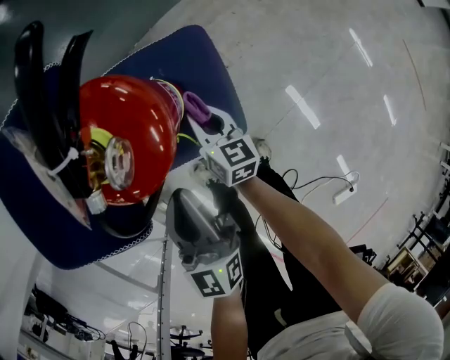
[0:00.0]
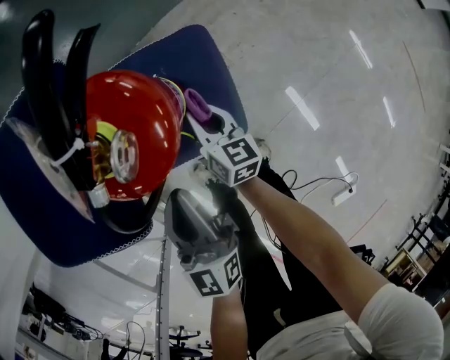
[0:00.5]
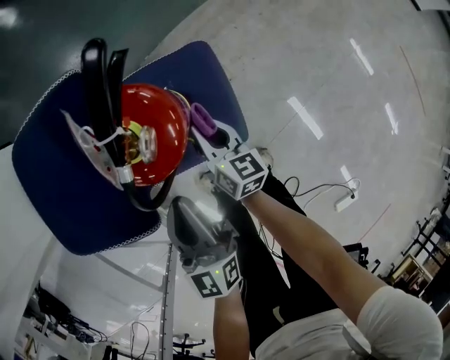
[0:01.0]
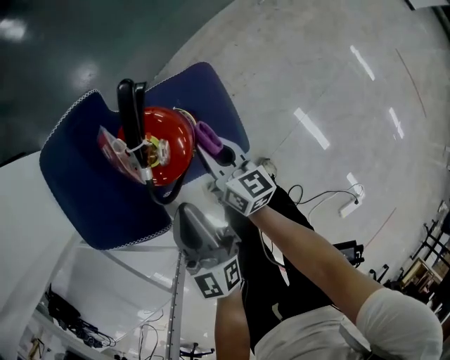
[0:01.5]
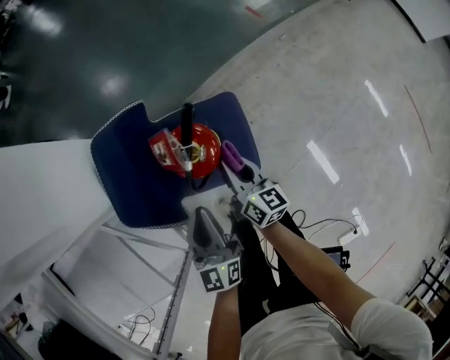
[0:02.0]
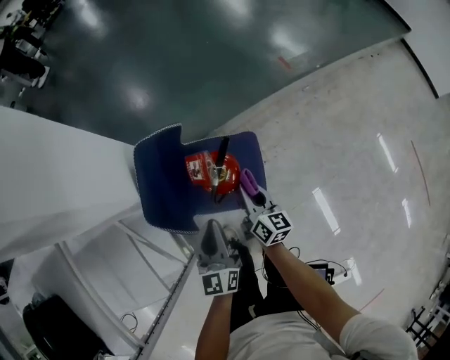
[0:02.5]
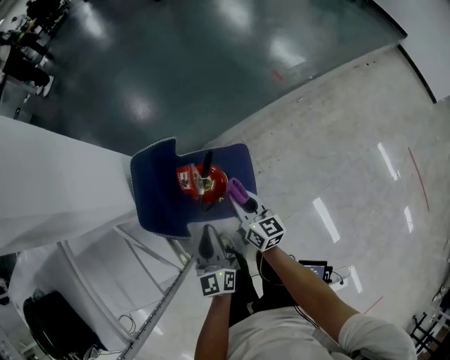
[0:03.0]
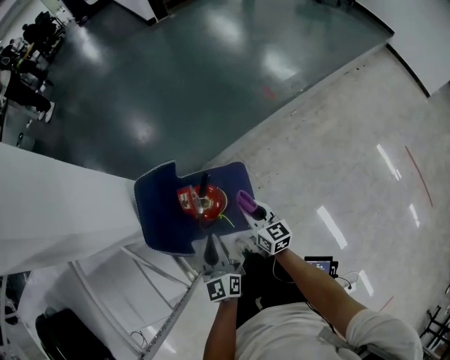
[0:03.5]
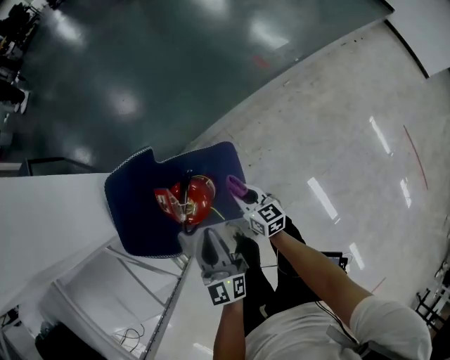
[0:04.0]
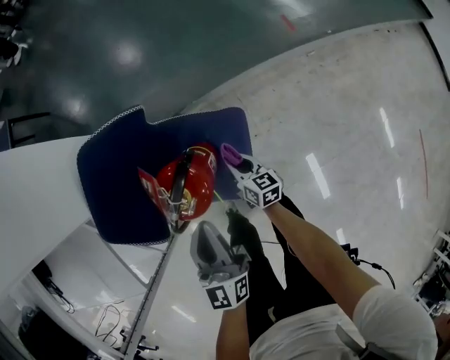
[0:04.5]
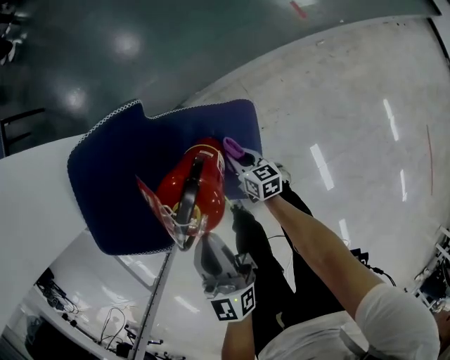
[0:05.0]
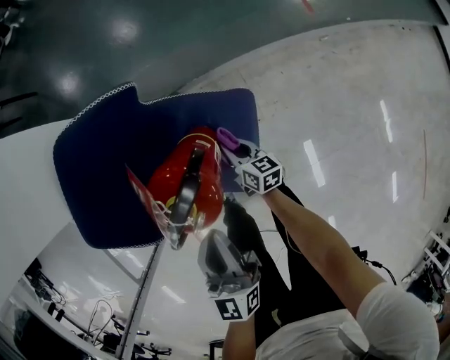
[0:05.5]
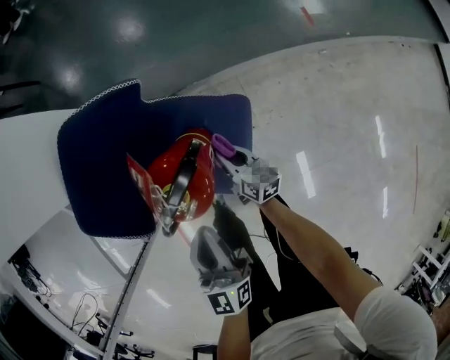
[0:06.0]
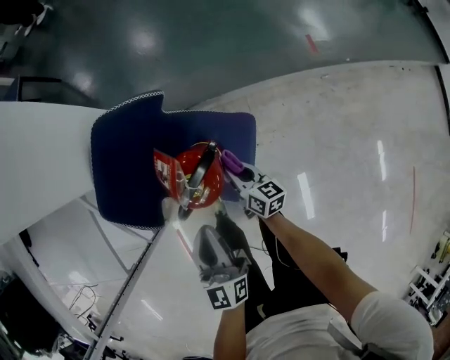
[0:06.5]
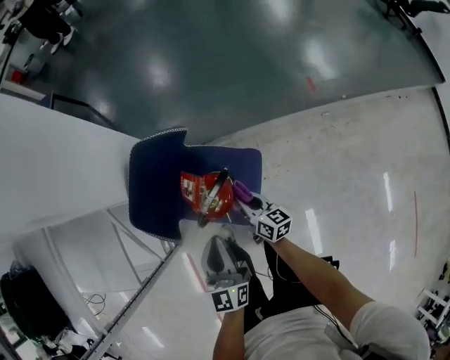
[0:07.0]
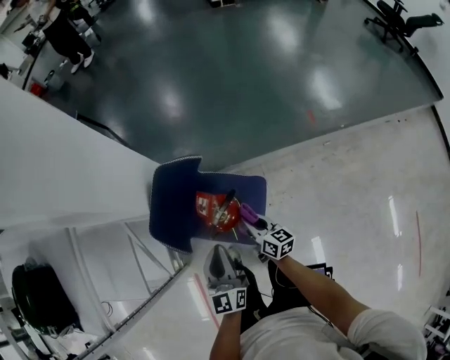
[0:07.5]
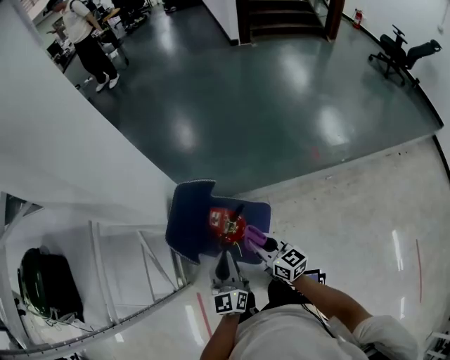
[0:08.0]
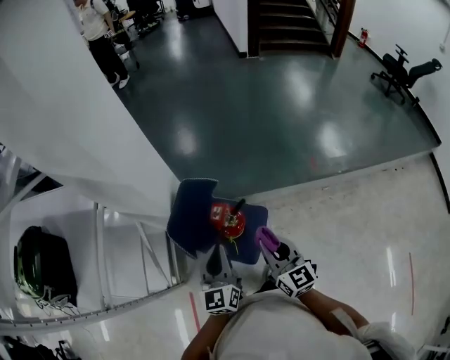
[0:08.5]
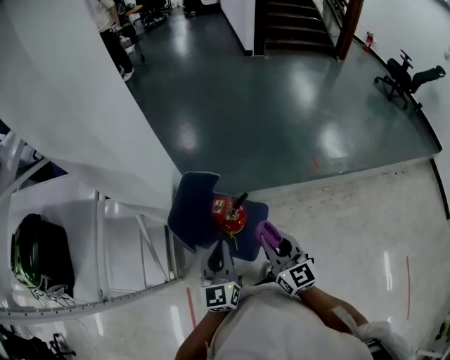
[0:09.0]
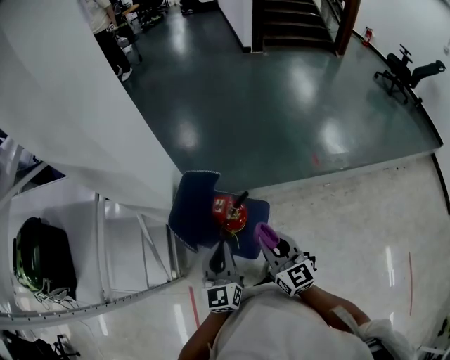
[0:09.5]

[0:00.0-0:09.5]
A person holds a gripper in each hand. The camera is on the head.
0:00.0 to 0:02.0: The right gripper moves upward, roughly 20 cm. The left gripper travels upward by about 10 cm.
0:02.0 to 0:04.0: Both grippers travel together to the right, about 10 cm. The right gripper travels upward and back again, some 10 cm each way, and swivels about 20 degrees.
0:04.0 to 0:05.5: The right gripper heads downward, covering roughly 20 cm. The left gripper heads downward, covering roughly 10 cm.
0:05.5 to 0:07.5: The right gripper goes roughly 30 cm upward, while the left gripper is displaced upward by some 15 cm.
0:07.5 to 0:09.5: The right gripper is displaced upward by some 30 cm, and turns by approximately 40 degrees. The left gripper moves upward, about 10 cm.

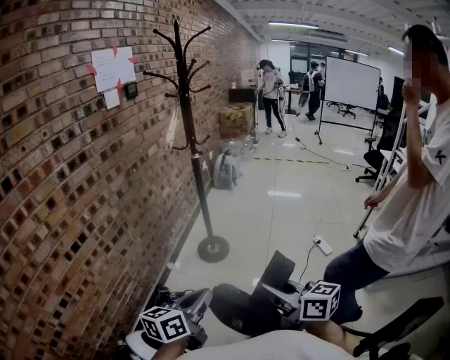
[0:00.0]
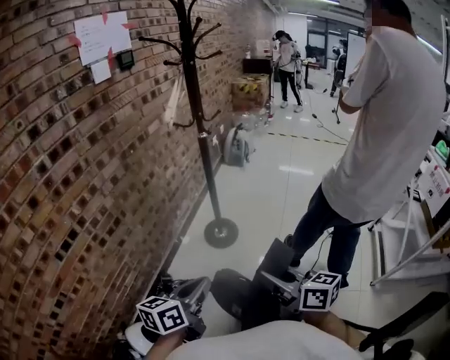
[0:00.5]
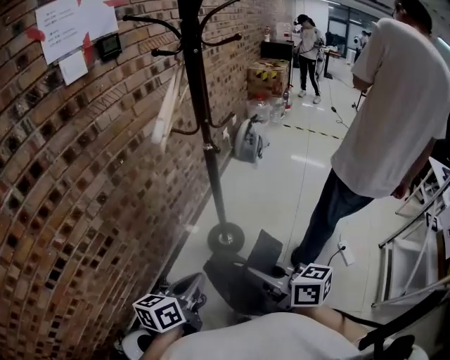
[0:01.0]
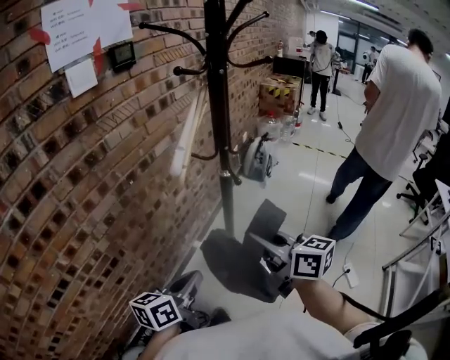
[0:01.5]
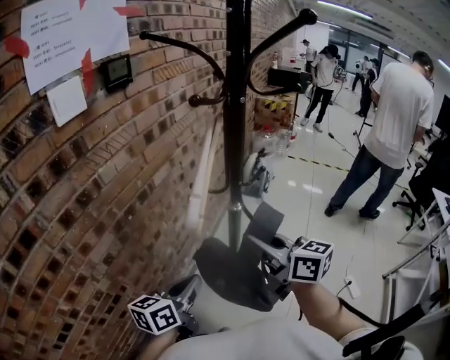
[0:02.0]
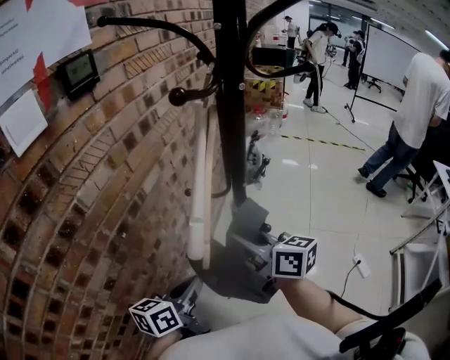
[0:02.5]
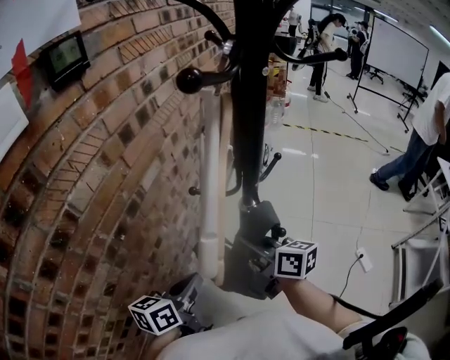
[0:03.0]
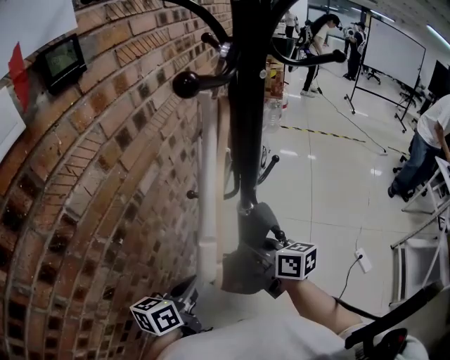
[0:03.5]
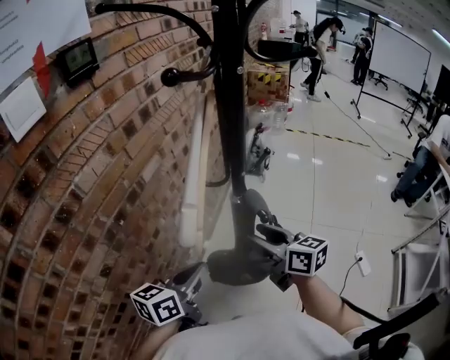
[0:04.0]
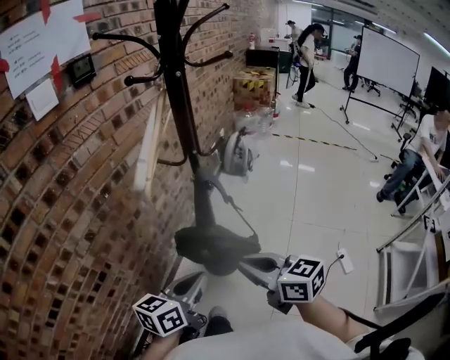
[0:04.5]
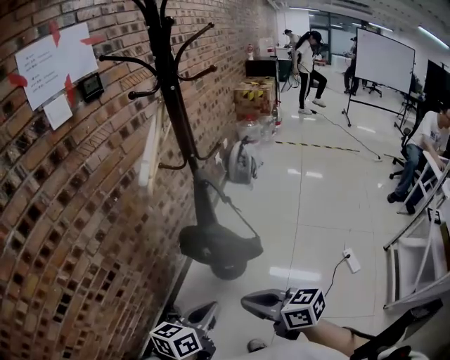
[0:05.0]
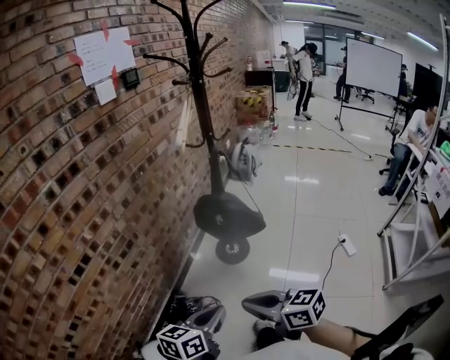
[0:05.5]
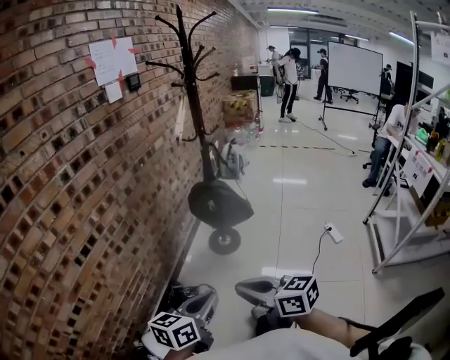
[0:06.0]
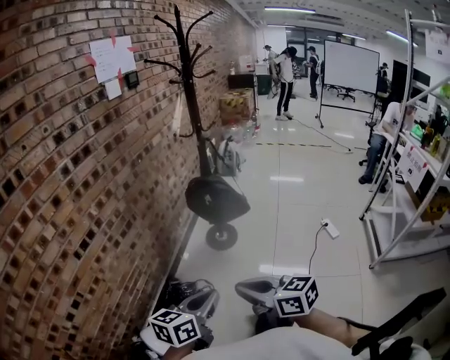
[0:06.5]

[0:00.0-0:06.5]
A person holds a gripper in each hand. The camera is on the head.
0:00.0 to 0:02.0: The pair of grippers is taken forward, roughly 60 cm.
0:02.0 to 0:04.5: The right gripper moves backward, downward and to the right, some 20 cm, and opens, then closes once more; the left gripper moves to the right and backward, some 15 cm.
0:04.5 to 0:06.5: The two grippers travel together, backward, roughly 50 cm.

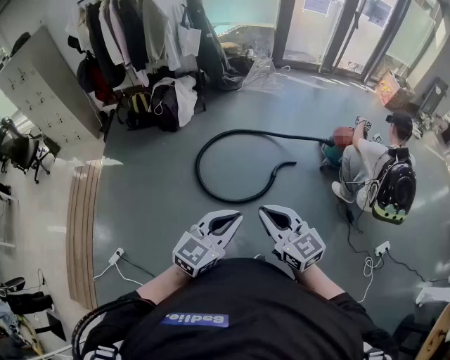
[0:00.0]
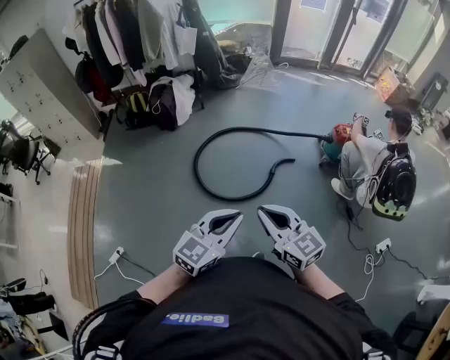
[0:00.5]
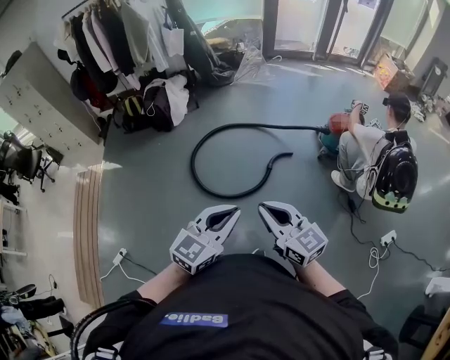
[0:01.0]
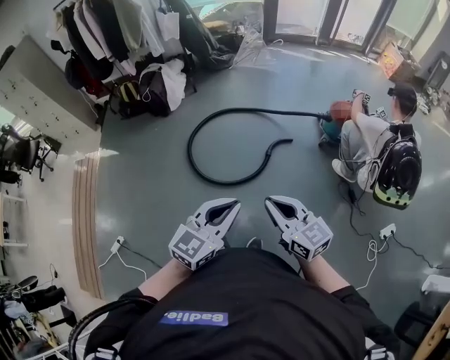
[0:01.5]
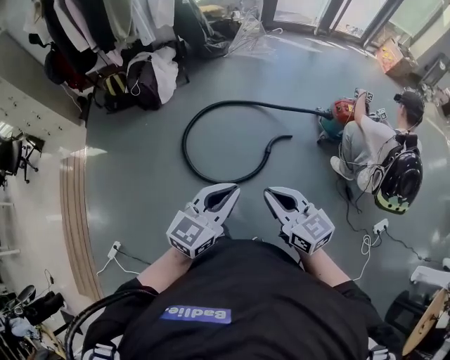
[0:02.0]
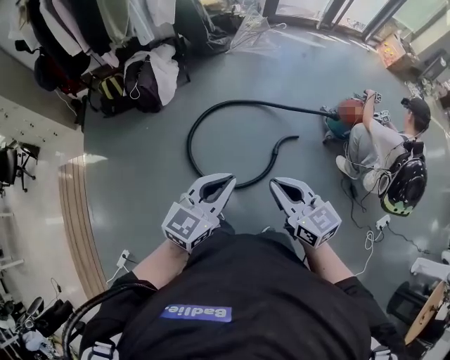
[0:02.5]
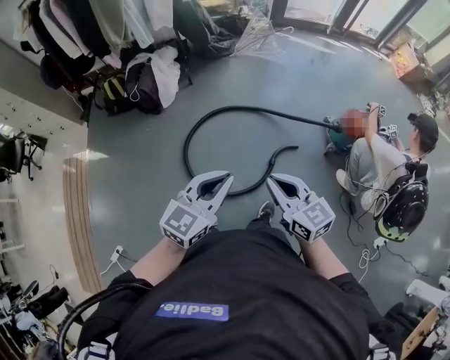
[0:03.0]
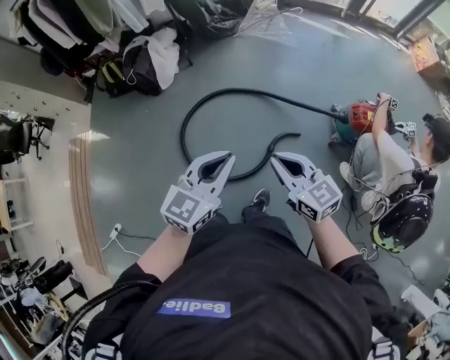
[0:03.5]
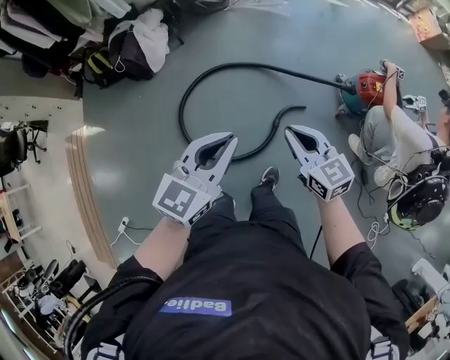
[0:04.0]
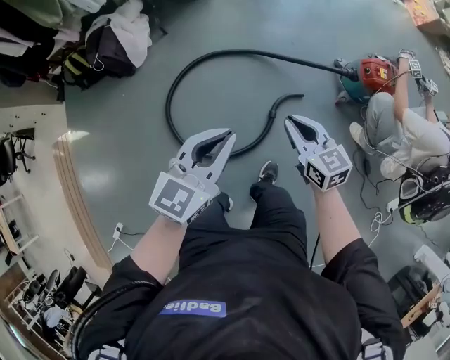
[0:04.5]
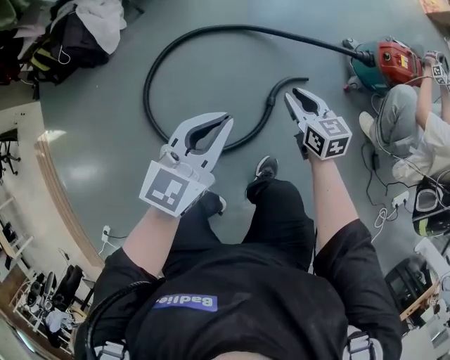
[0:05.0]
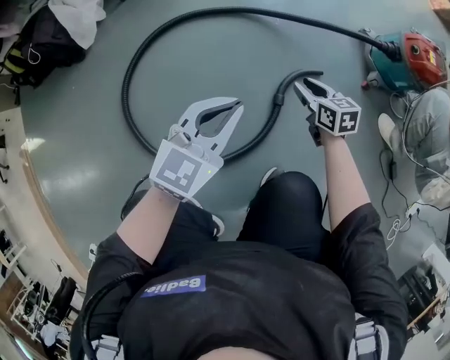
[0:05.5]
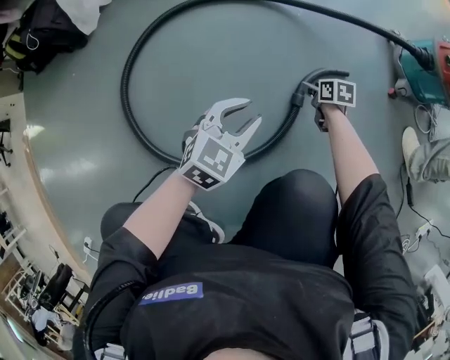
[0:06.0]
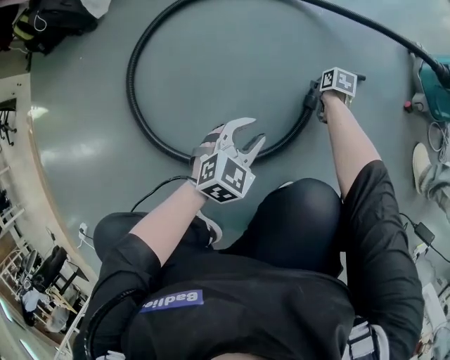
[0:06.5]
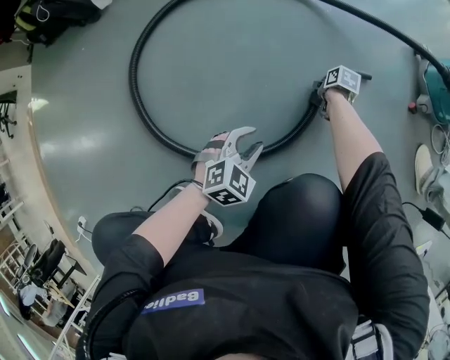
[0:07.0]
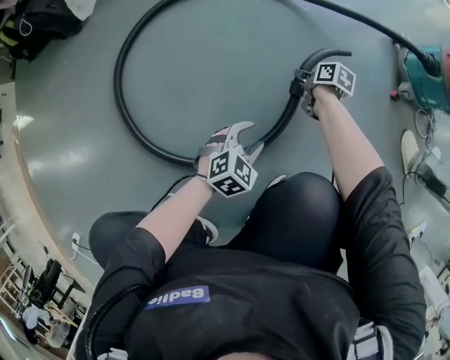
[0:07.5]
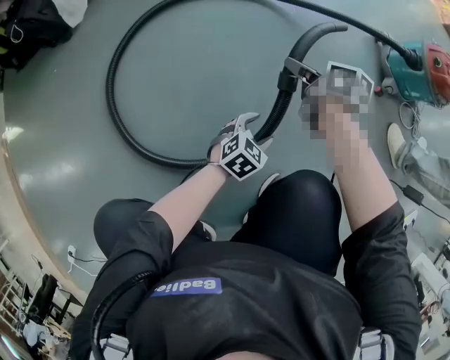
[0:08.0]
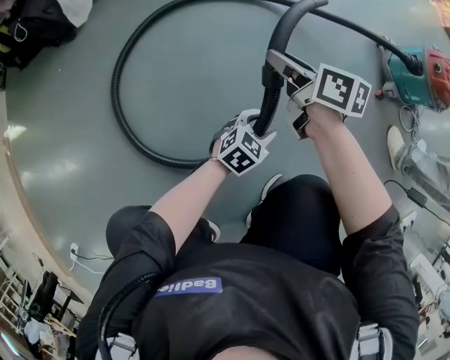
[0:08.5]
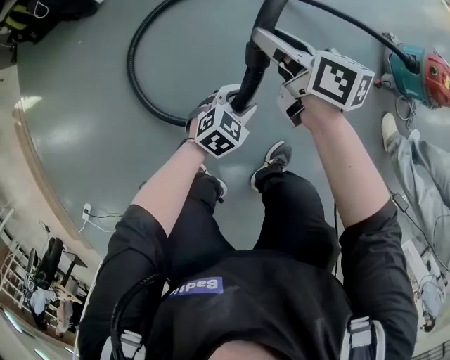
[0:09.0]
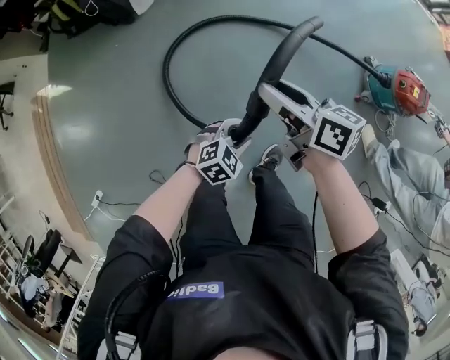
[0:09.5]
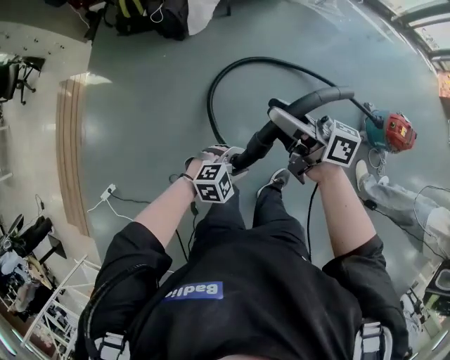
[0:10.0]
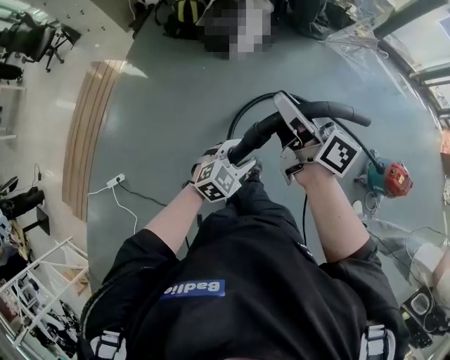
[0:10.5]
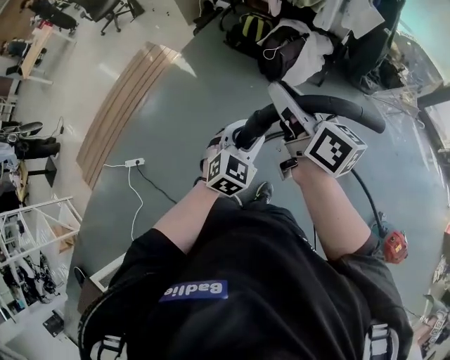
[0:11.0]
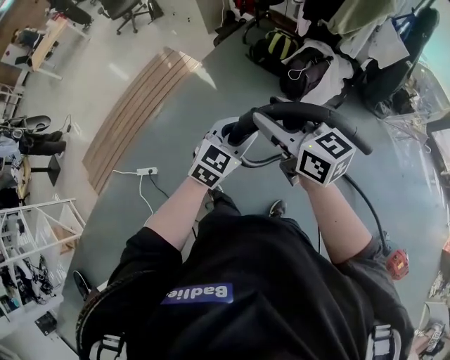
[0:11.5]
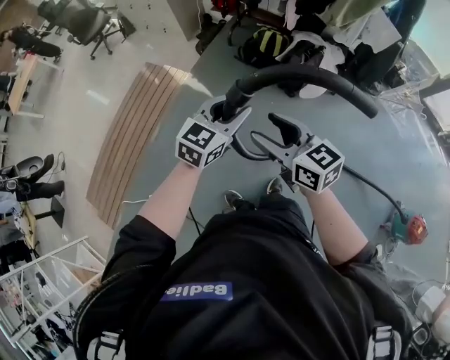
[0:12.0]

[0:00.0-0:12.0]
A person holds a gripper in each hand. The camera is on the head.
0:00.0 to 0:02.0: The right gripper heads forward and downward, covering roughly 15 cm, while the left gripper shifts some 15 cm forward.
0:02.0 to 0:04.0: The right gripper travels forward, to the right and downward by roughly 35 cm. The left gripper heads forward, covering roughly 25 cm.
0:04.0 to 0:06.0: Both grippers move downward, approximately 80 cm. The left gripper rotates approximately 30 degrees, and opens up; the right gripper tips its fingers downward by approximately 40 degrees, and opens up.
0:06.0 to 0:08.0: The right gripper heads upward, covering about 20 cm, and turns by some 20 degrees. Meanwhile the left gripper is displaced downward by about 15 cm, and opens up.
0:08.0 to 0:10.0: The grippers both shift upward by approximately 60 cm. The right gripper points its fingers some 40 degrees further upward.
0:10.0 to 0:12.0: Both grippers are carried some 60 cm. The left gripper tips its fingers upward by approximately 30 degrees; the right gripper turns by approximately 50 degrees.
